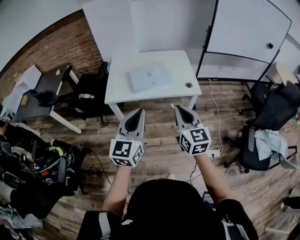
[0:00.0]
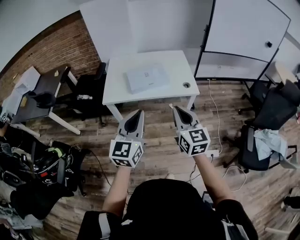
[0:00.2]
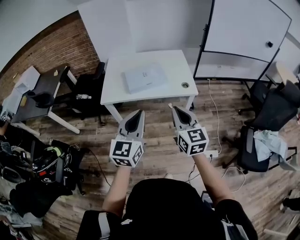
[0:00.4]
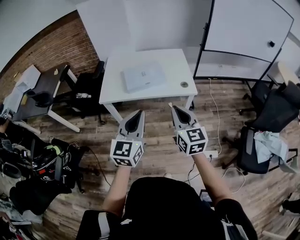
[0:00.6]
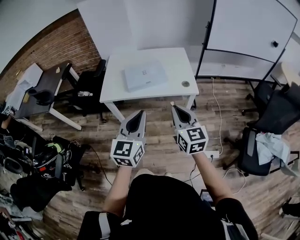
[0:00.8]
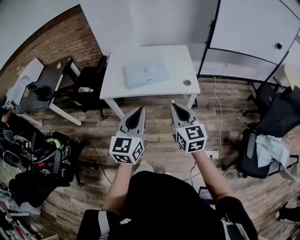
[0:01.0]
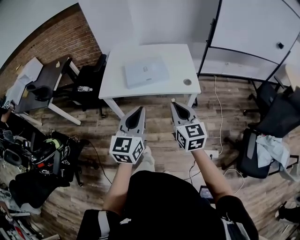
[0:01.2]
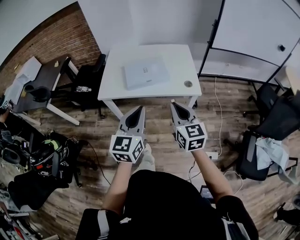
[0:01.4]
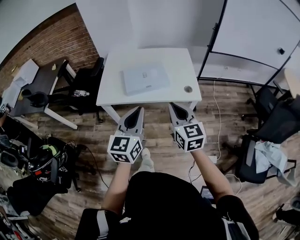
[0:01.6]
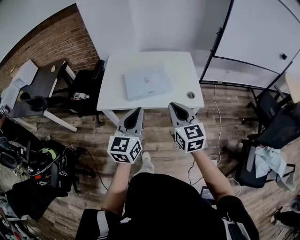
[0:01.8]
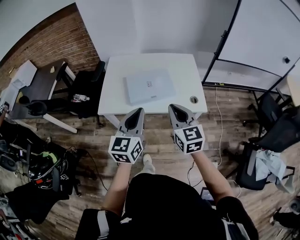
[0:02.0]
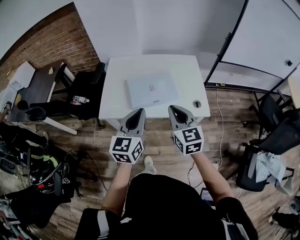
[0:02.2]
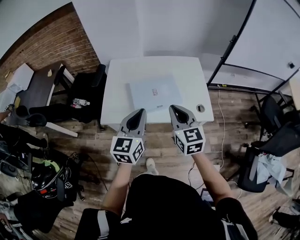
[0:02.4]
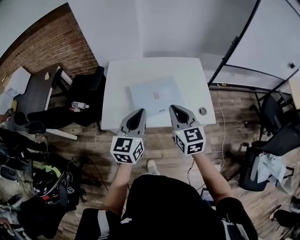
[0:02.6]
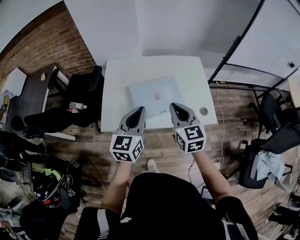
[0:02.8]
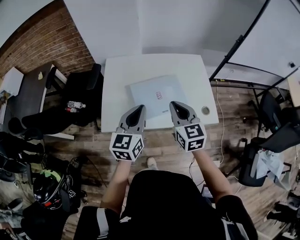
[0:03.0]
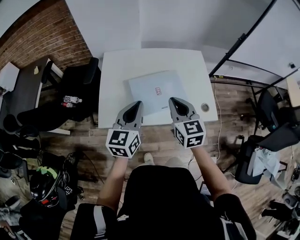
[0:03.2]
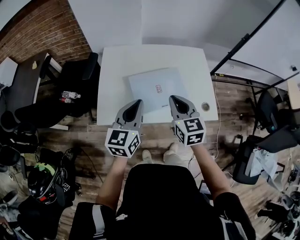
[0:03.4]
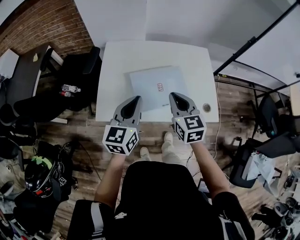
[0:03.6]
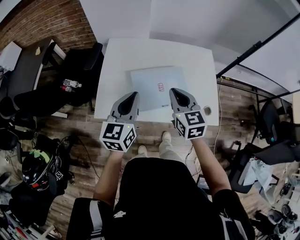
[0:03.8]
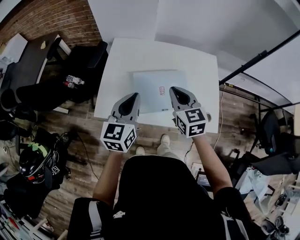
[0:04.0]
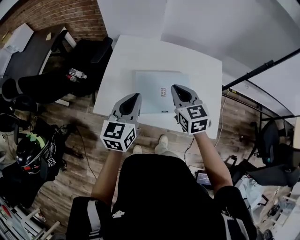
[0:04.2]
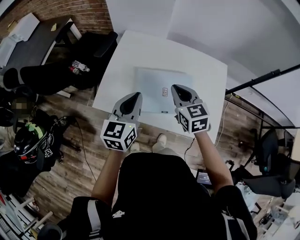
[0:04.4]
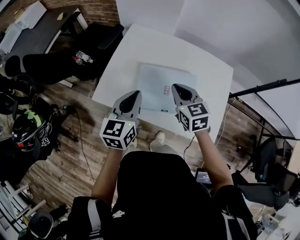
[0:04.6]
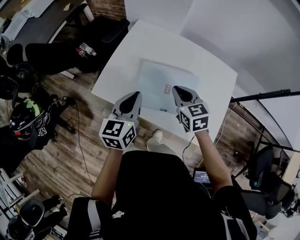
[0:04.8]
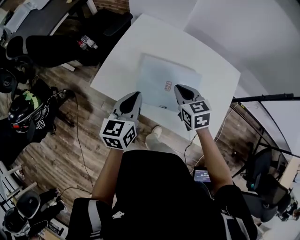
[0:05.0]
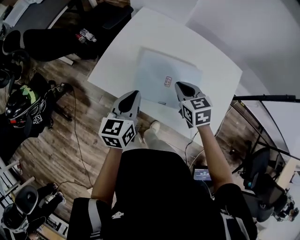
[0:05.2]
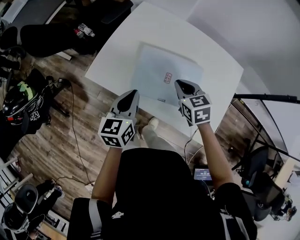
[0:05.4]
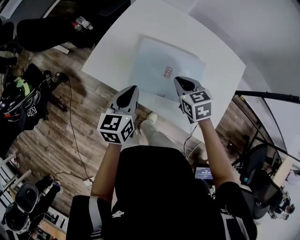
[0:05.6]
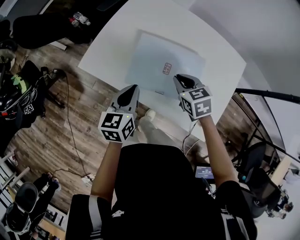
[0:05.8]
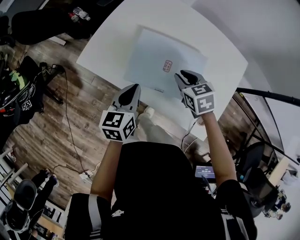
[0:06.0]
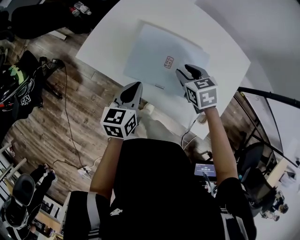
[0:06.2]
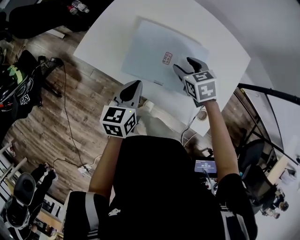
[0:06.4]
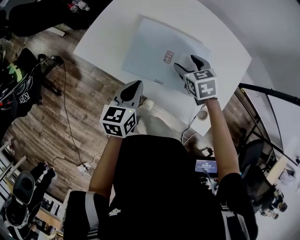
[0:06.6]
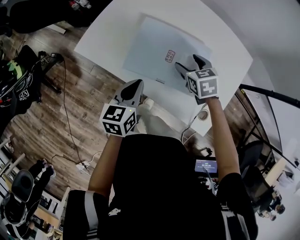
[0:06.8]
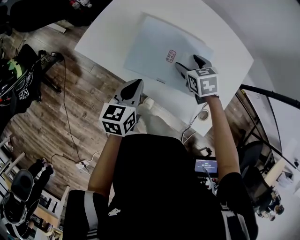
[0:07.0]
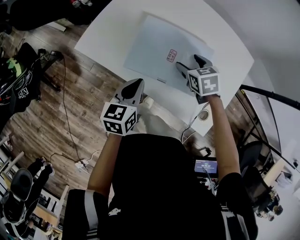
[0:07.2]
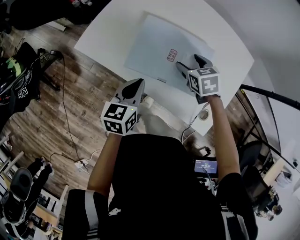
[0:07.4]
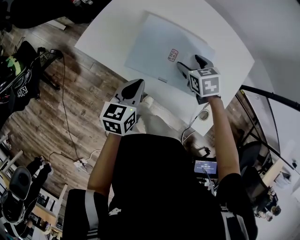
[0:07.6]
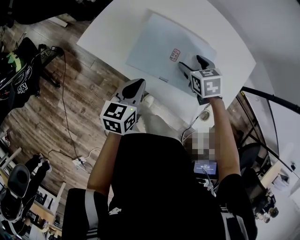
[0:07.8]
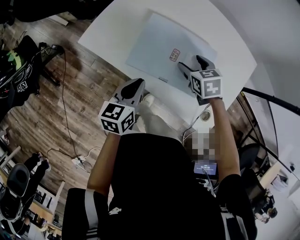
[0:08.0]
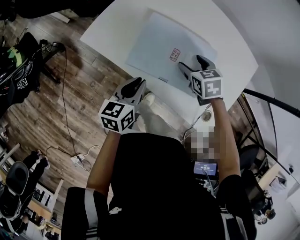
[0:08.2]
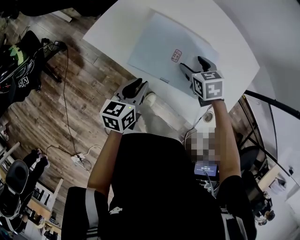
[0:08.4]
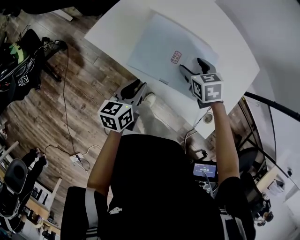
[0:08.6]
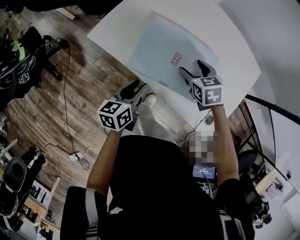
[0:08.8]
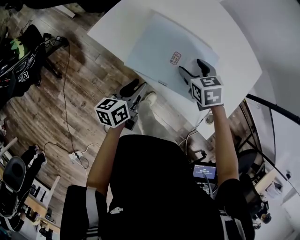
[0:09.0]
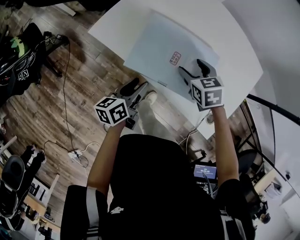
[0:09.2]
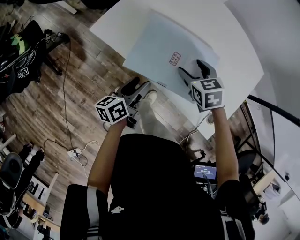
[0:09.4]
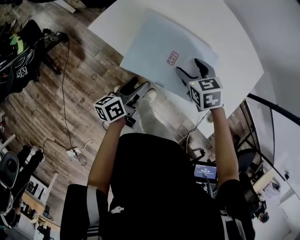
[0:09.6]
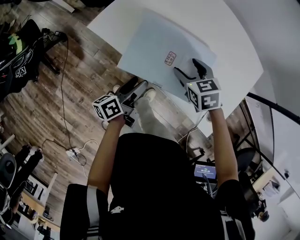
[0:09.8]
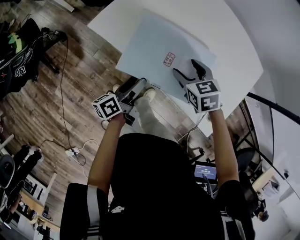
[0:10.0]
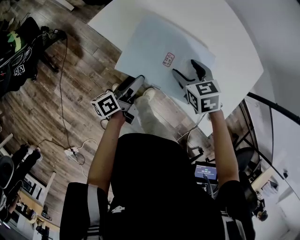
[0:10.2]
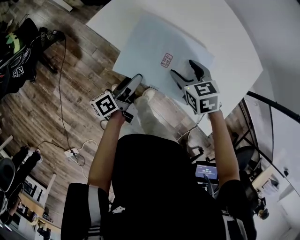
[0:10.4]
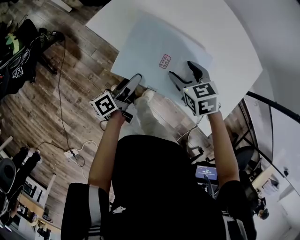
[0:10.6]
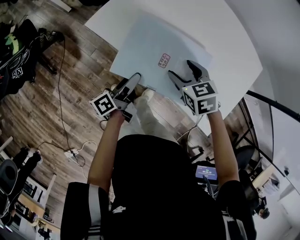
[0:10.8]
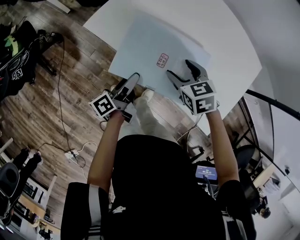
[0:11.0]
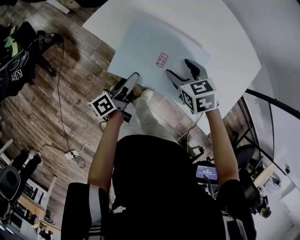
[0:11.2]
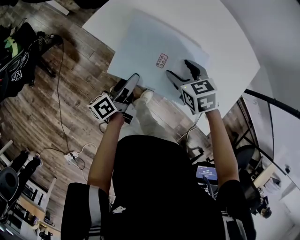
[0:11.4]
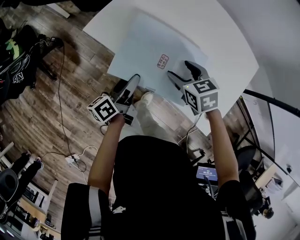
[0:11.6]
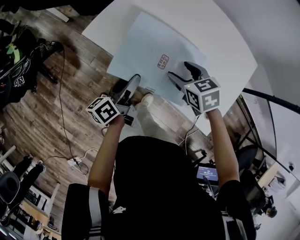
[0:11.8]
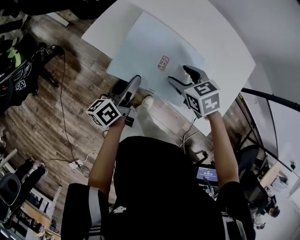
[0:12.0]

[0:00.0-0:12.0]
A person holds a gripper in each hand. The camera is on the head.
0:00.0 to 0:01.6: The right gripper moves forward, approximately 10 cm; the left gripper travels forward and to the right by about 15 cm.
0:01.6 to 0:03.0: The grippers both shift forward and to the left by roughly 30 cm.
0:03.0 to 0:04.4: The left gripper shifts approximately 5 cm forward. The right gripper travels forward and downward by roughly 15 cm, and changes its angle by some 20 degrees.
0:04.4 to 0:06.0: The two grippers go about 15 cm downward. The left gripper swivels about 20 degrees, while the right gripper rotates some 30 degrees.
0:06.0 to 0:07.6: The right gripper changes place by about 5 cm, and opens.
0:07.6 to 0:09.0: The left gripper changes place by roughly 5 cm, swivels some 20 degrees, and opens its fingers. Meanwhile the right gripper heads to the left, covering about 5 cm.
0:09.0 to 0:10.4: The left gripper changes its angle by about 30 degrees, and opens up, while the right gripper changes place by roughly 5 cm.
0:10.4 to 0:12.0: The left gripper heads upward, covering roughly 5 cm.

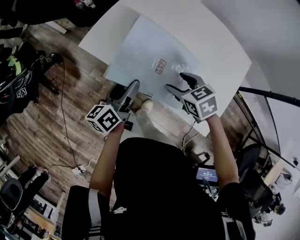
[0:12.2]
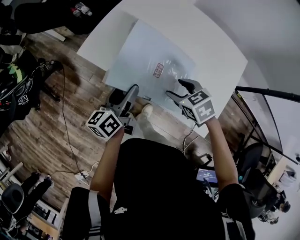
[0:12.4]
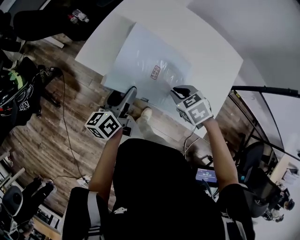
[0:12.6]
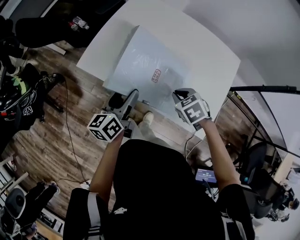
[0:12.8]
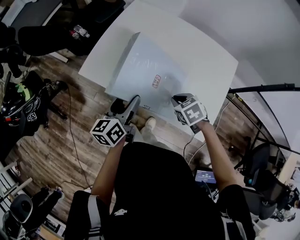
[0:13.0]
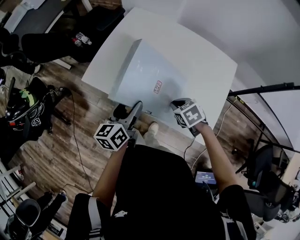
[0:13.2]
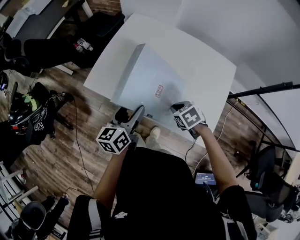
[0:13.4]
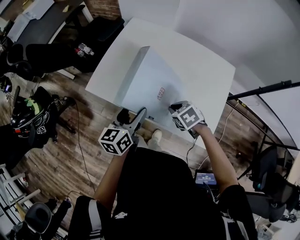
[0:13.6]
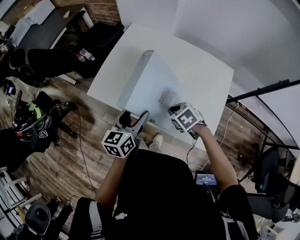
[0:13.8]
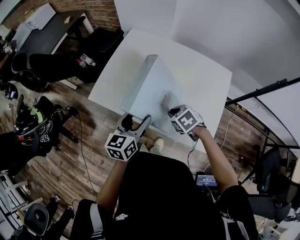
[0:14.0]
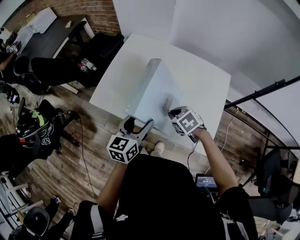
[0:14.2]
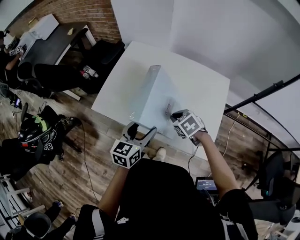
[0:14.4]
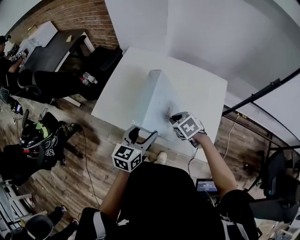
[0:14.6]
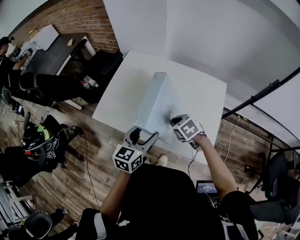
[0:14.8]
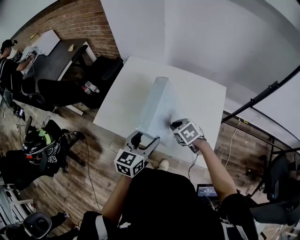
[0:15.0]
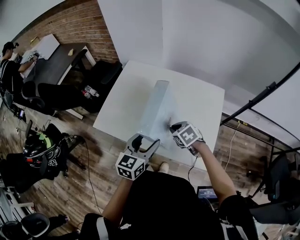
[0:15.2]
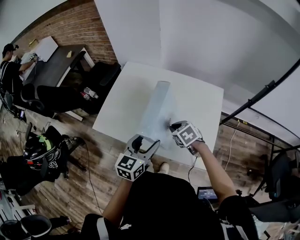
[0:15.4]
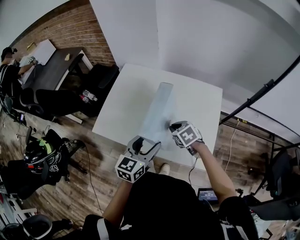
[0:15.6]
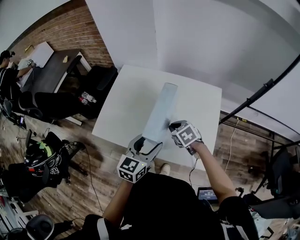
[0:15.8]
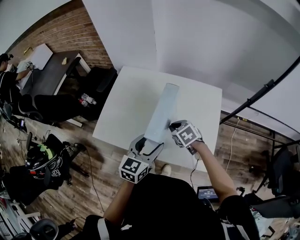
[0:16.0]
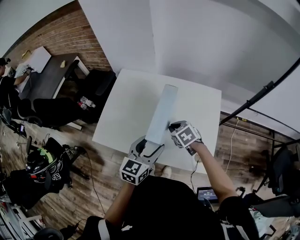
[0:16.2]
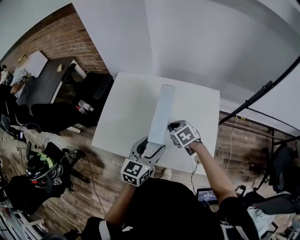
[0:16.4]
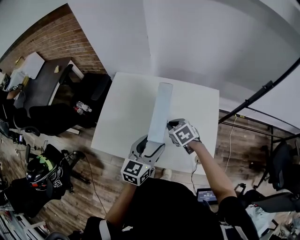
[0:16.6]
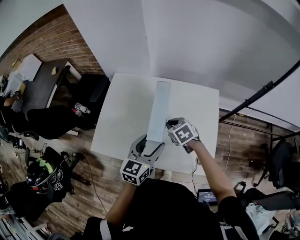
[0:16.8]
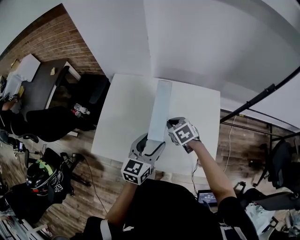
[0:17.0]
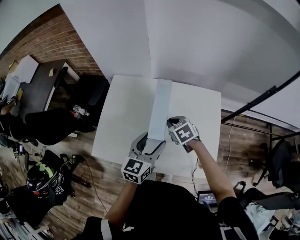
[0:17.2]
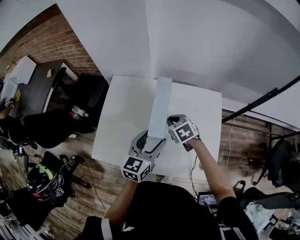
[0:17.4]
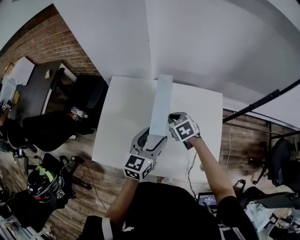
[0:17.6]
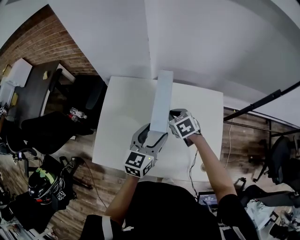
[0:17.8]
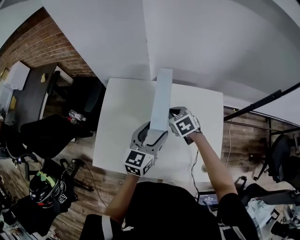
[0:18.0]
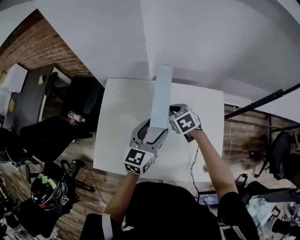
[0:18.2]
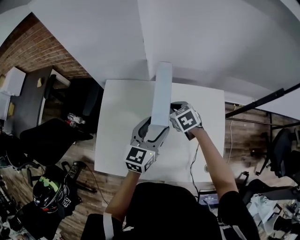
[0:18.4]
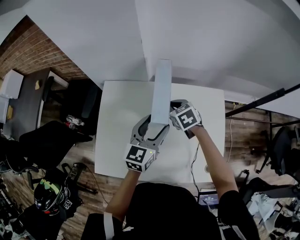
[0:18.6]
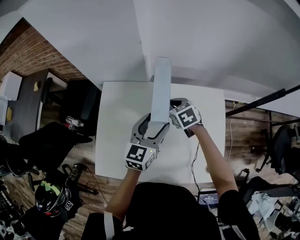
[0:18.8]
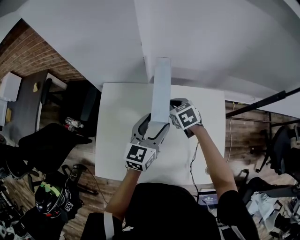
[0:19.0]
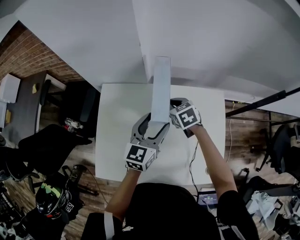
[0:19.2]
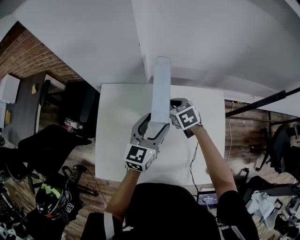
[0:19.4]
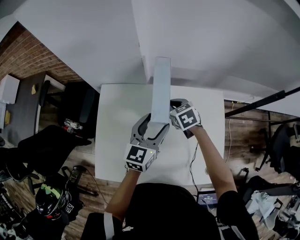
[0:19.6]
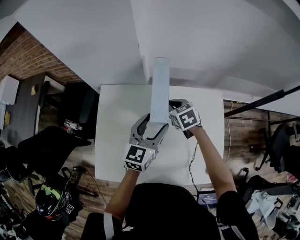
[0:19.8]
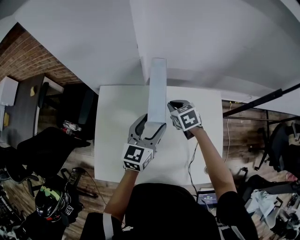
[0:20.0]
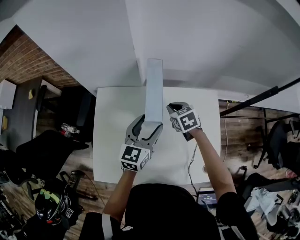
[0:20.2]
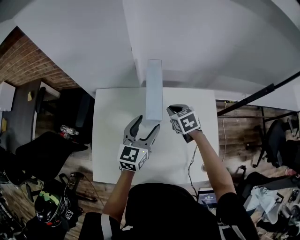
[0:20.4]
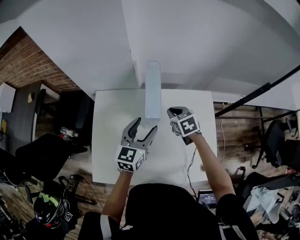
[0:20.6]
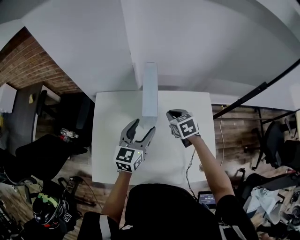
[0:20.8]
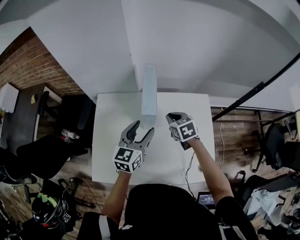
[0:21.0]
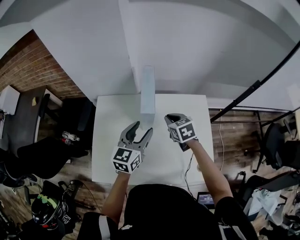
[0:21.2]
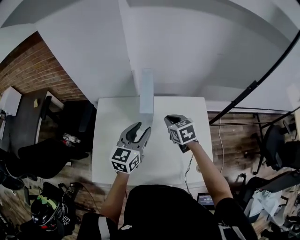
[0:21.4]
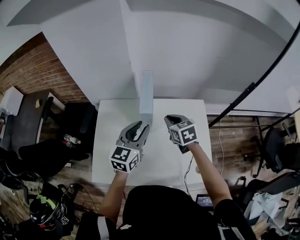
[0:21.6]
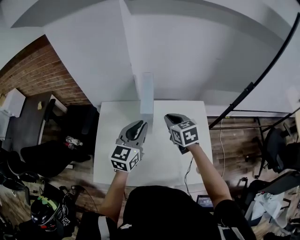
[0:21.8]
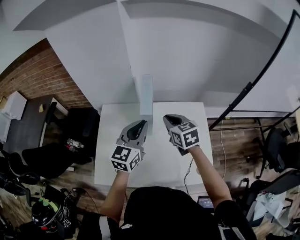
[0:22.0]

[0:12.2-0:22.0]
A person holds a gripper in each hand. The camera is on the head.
0:12.2 to 0:13.6: The left gripper is displaced upward and to the right by about 10 cm, and changes its angle by roughly 30 degrees; the right gripper travels to the right by approximately 5 cm, and closes its fingers.
0:13.6 to 0:15.0: The right gripper ends up roughly 5 cm from where it was. Meanwhile the left gripper moves to the right, approximately 5 cm, and rotates roughly 20 degrees.
0:15.0 to 0:16.4: The right gripper moves forward, approximately 5 cm. The left gripper ends up approximately 5 cm from where it was.
0:16.4 to 0:17.8: Both grippers travel together forward, approximately 15 cm.
0:17.8 to 0:19.2: Both grippers travel together forward, roughly 10 cm.
0:19.2 to 0:20.6: The right gripper ends up about 5 cm from where it was.
0:20.6 to 0:22.0: Both grippers move upward and backward, some 15 cm. The left gripper closes its fingers.

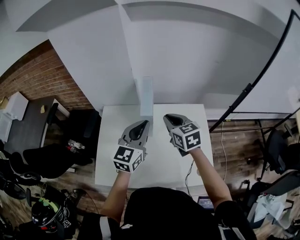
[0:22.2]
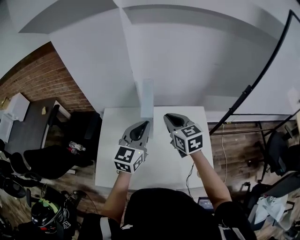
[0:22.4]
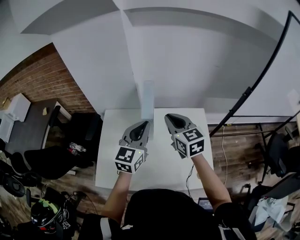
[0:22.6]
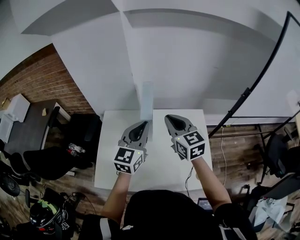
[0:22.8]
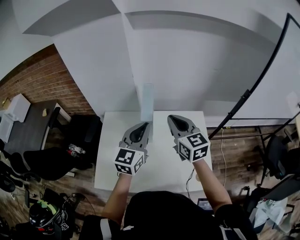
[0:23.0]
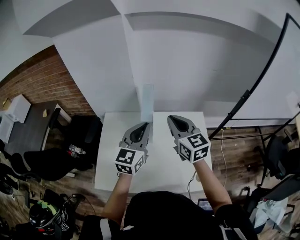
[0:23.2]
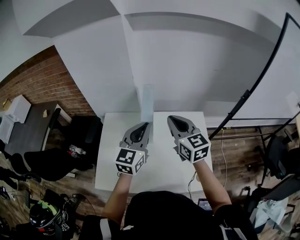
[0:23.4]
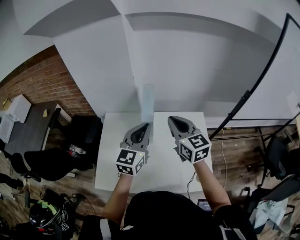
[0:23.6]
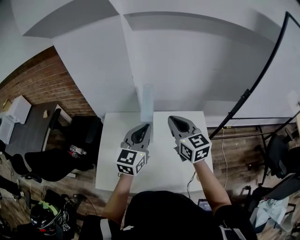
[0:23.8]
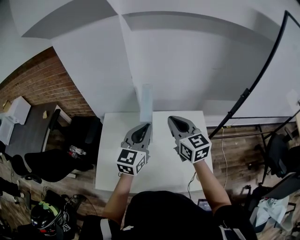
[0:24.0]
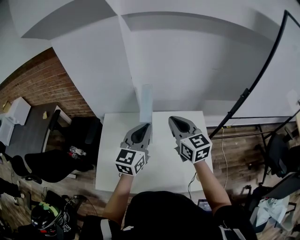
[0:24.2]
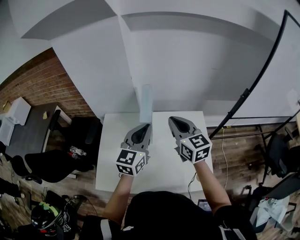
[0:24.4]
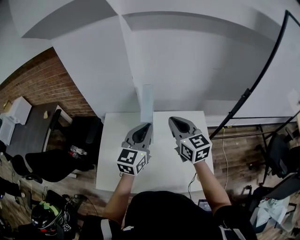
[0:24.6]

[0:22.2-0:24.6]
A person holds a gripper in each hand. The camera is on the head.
0:22.2 to 0:23.4: The right gripper heads upward, covering roughly 10 cm.
0:23.4 to 0:24.6: Both grippers stay about where they are.
